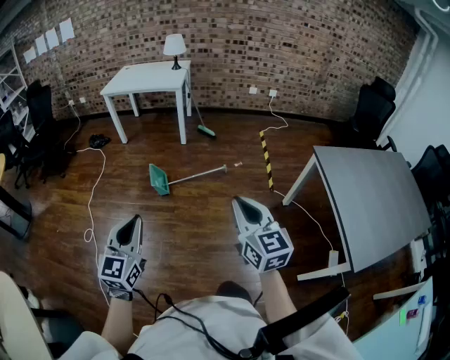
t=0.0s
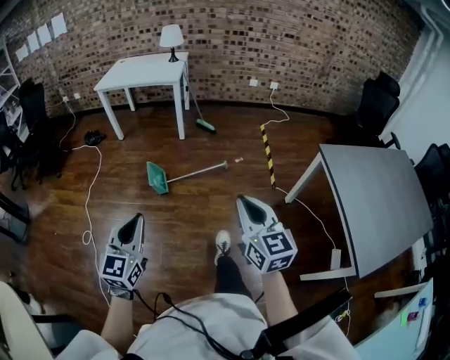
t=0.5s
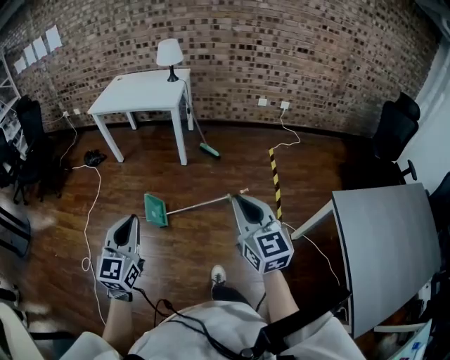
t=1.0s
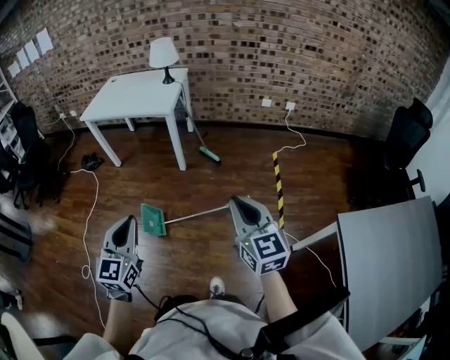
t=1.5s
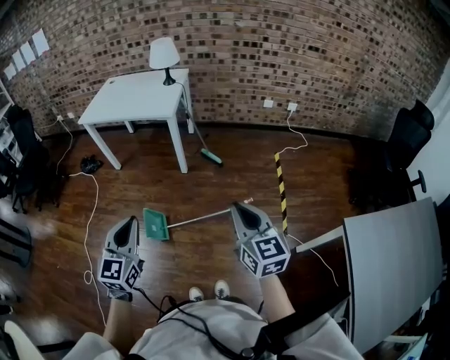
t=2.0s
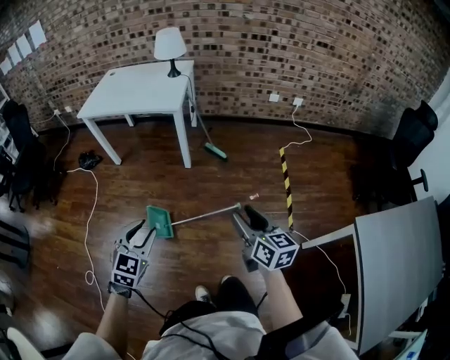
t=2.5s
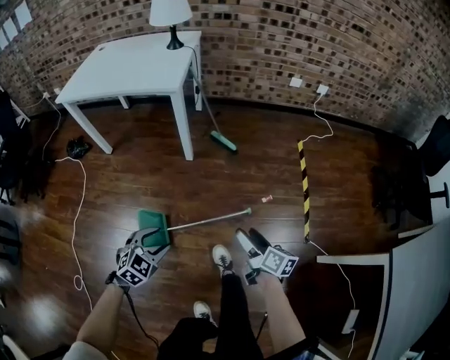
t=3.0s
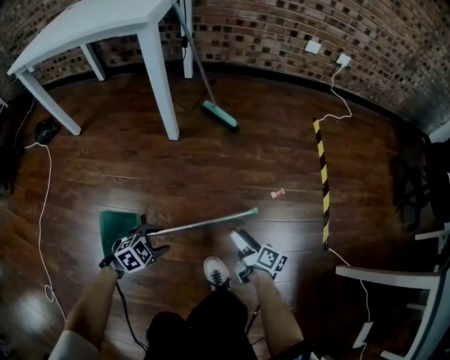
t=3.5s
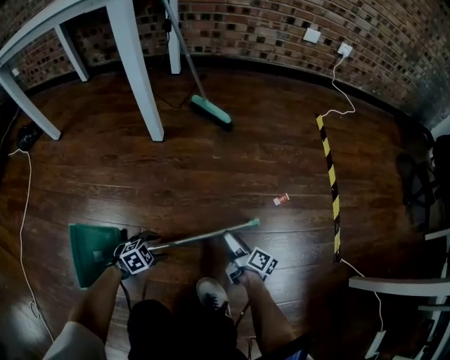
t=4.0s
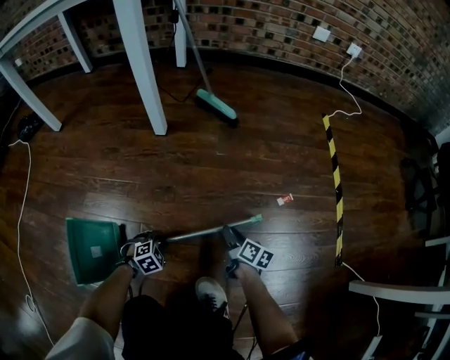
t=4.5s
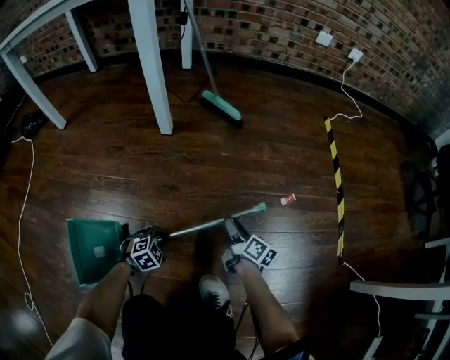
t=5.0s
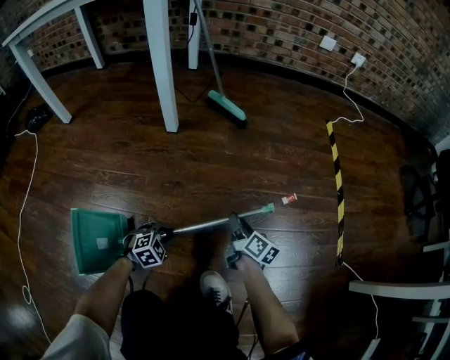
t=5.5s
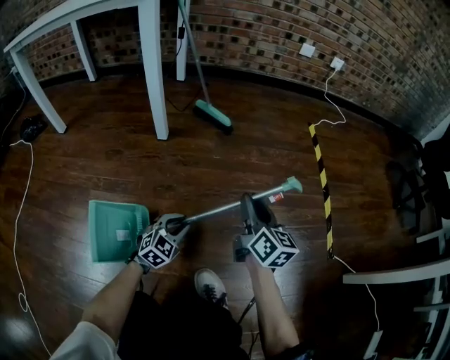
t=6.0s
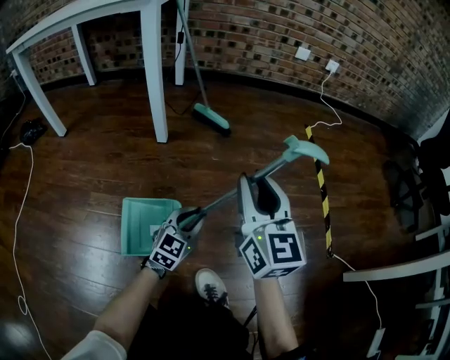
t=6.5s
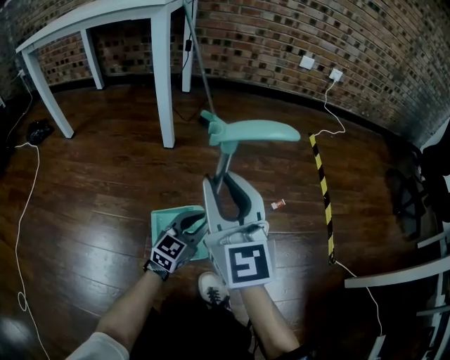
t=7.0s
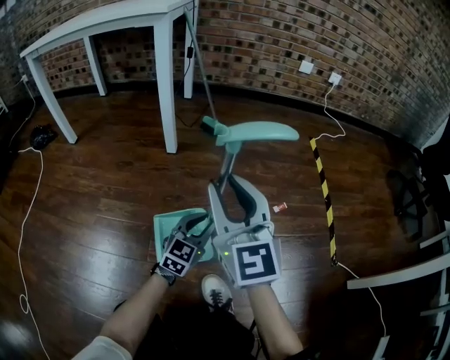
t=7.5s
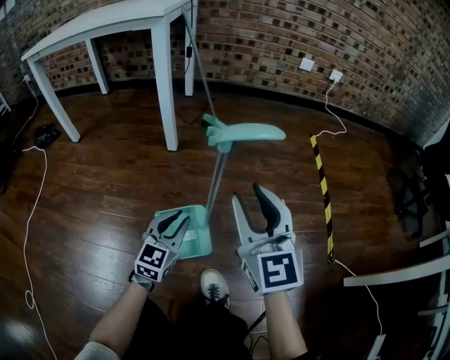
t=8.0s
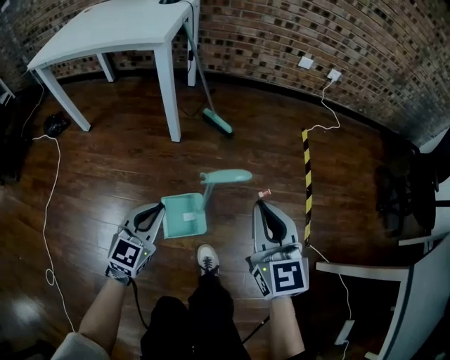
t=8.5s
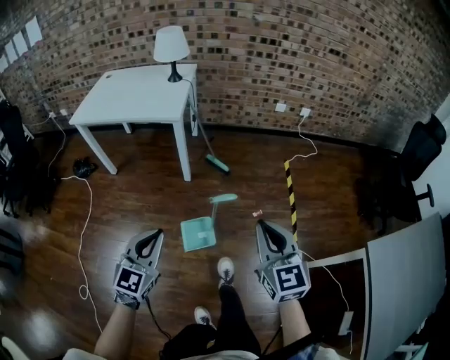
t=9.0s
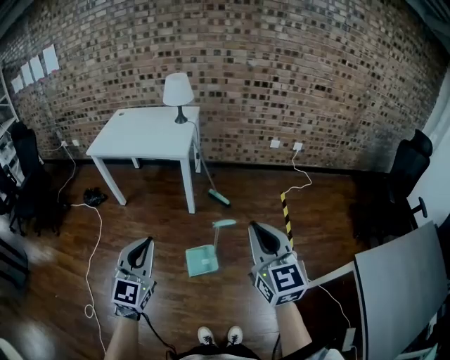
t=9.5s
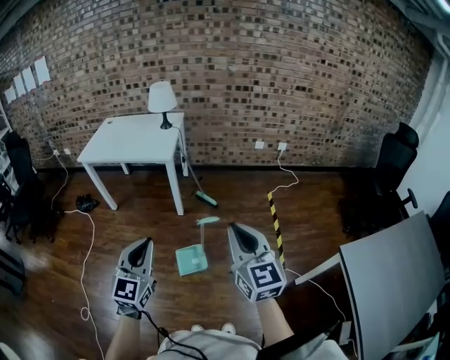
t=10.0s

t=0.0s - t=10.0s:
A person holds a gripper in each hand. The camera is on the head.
t=0.0s - t=2.0s: The two grippers travel together, forward, roughly 50 cm.
t=2.0s - t=4.0s: The two grippers go about 1 m downward. The left gripper tilts its fingers roughly 60 degrees downward, and opens its fingers. Meanwhile the right gripper twists some 70 degrees clockwise, seen from behind, and opens its fingers.
t=4.0s - t=6.0s: The left gripper moves upward, forward and to the right, about 15 cm, swivels approximately 30 degrees, and closes. Meanwhile the right gripper moves upward, some 25 cm, changes its angle by approximately 40 degrees, and closes up.
t=6.0s - t=8.0s: The right gripper shifts about 20 cm upward and backward, and rolls counterclockwise, seen from behind, by about 40 degrees. Meanwhile the left gripper moves upward, approximately 15 cm, and changes its angle by approximately 30 degrees.
t=8.0s - t=10.0s: The two grippers go some 70 cm upward.

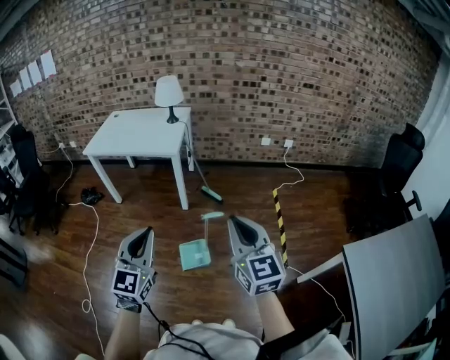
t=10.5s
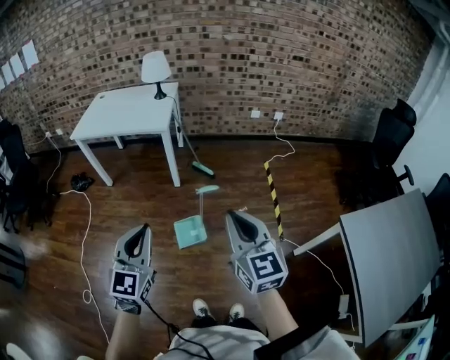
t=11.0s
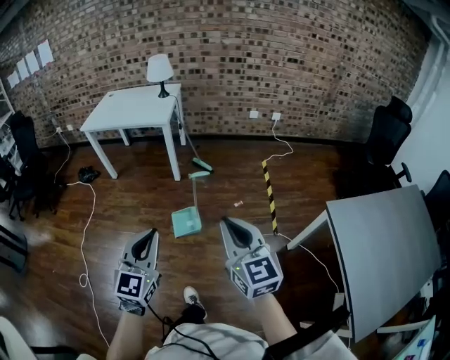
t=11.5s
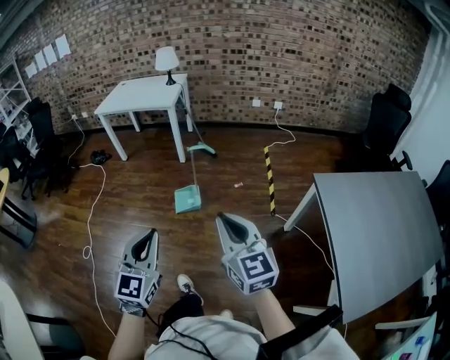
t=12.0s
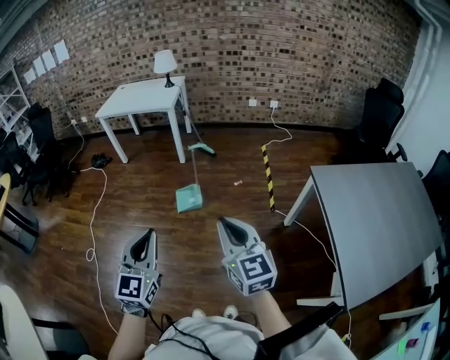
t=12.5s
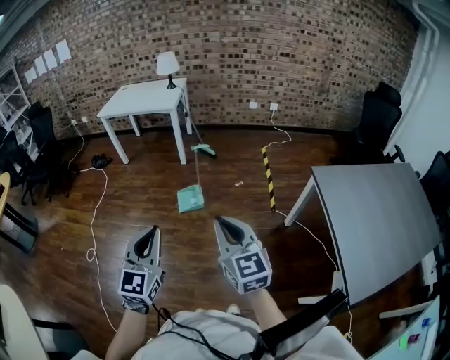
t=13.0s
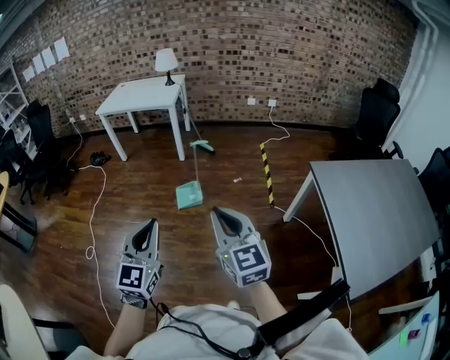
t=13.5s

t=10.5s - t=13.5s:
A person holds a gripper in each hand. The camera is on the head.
t=10.5s - t=12.0s: The two grippers go some 40 cm backward.
t=12.0s - t=13.5s: The left gripper changes place by about 5 cm. The right gripper goes about 10 cm to the left and backward.

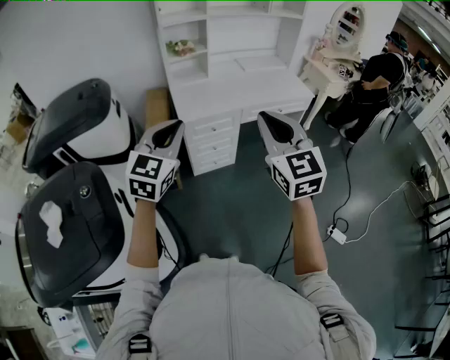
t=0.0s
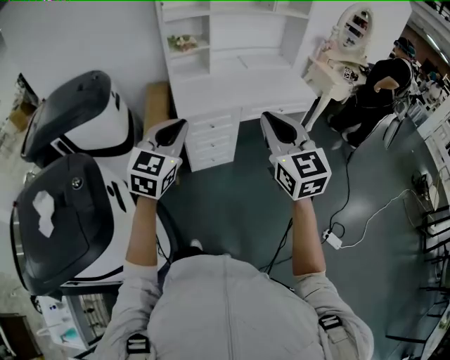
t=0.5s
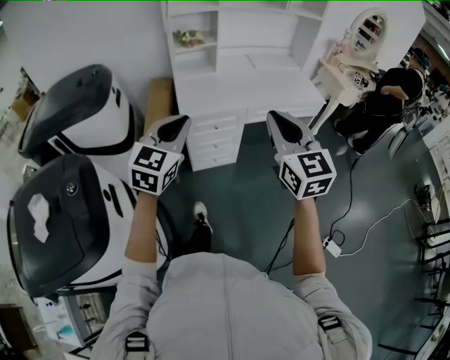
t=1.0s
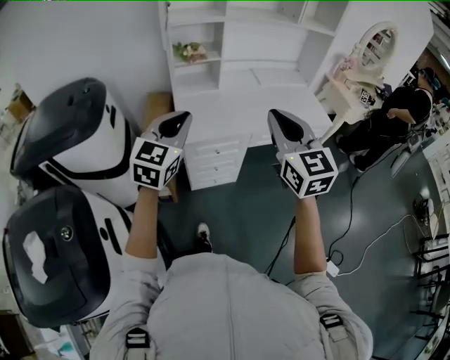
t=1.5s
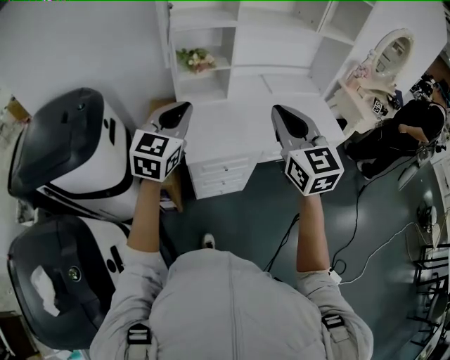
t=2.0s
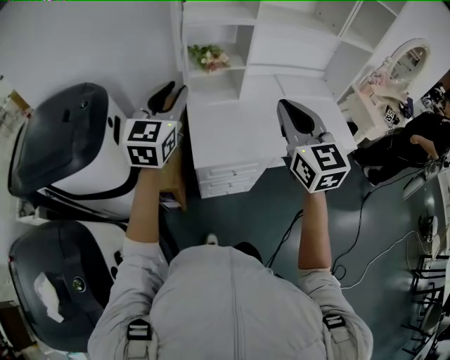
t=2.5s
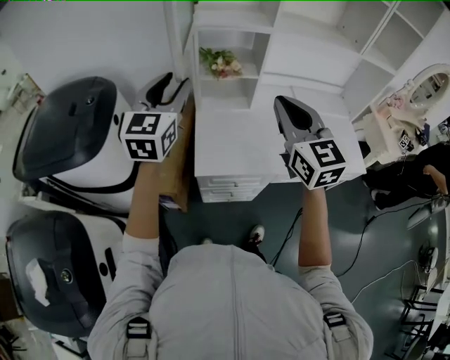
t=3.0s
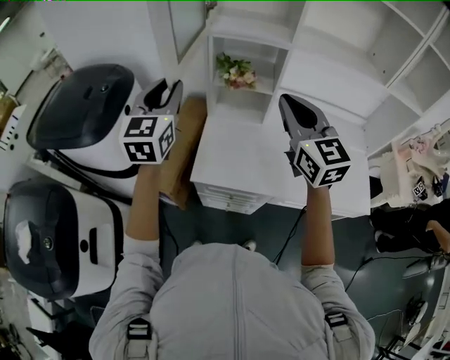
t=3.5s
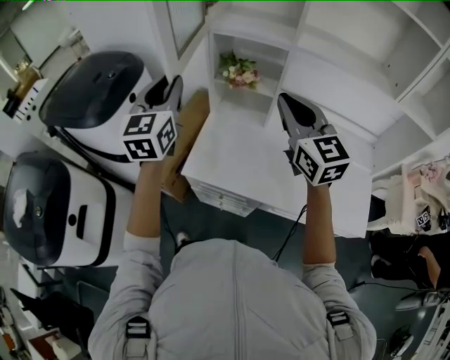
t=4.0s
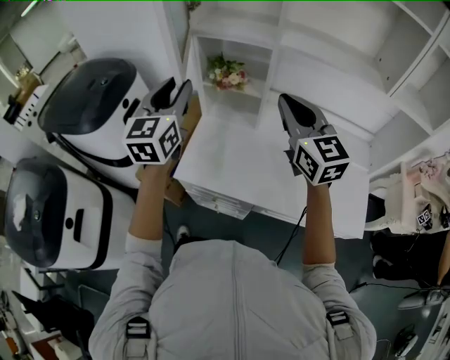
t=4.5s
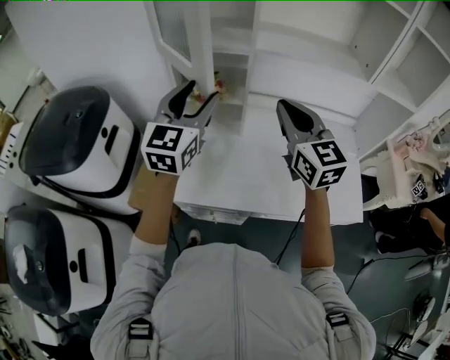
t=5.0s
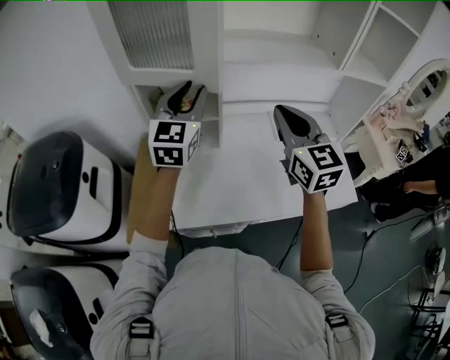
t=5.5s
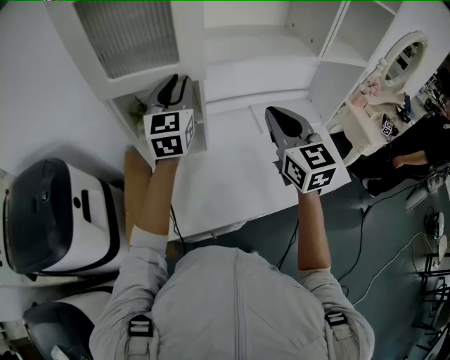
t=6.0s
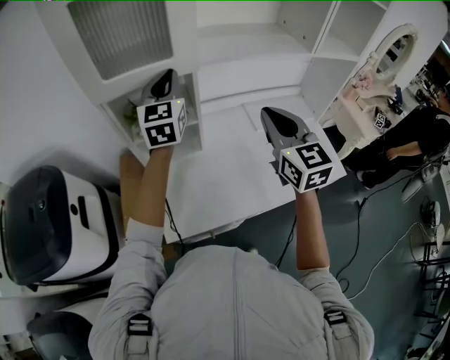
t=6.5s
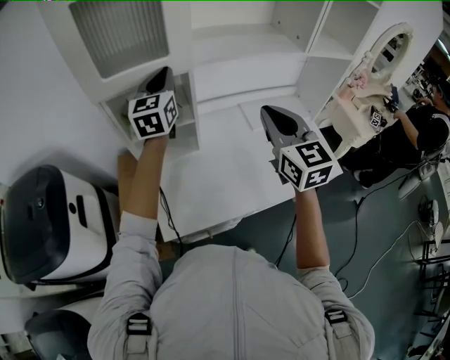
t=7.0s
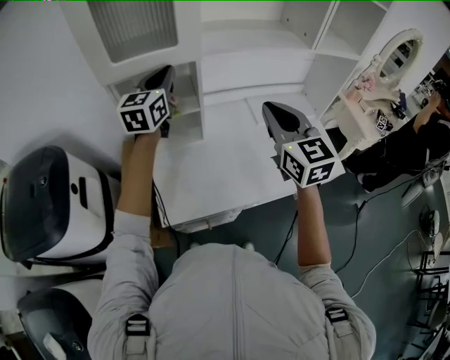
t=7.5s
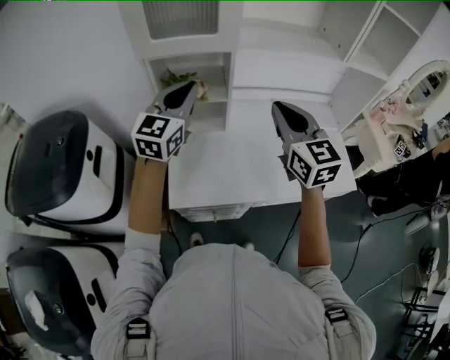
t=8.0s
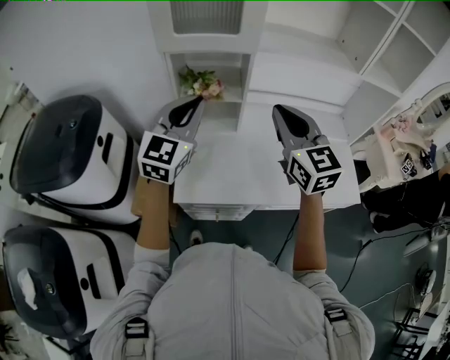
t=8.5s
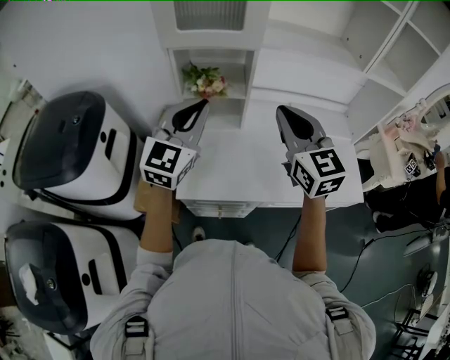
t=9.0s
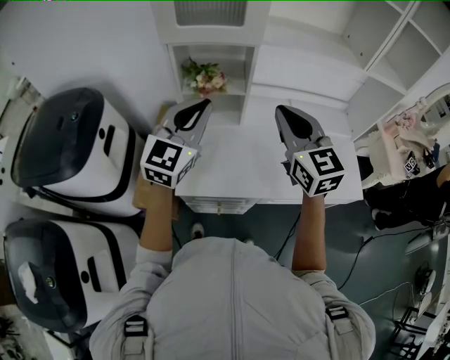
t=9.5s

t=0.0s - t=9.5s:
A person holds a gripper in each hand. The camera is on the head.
t=0.0s - t=2.0s: The two grippers go about 35 cm forward.
t=2.0s - t=4.0s: The left gripper changes place by some 15 cm, turns by about 40 degrees, and opens, then closes once more; the right gripper ends up approximately 25 cm from where it was, and rotates approximately 30 degrees.
t=4.0s - t=5.5s: The right gripper changes place by some 10 cm, and changes its angle by roughly 30 degrees; the left gripper ends up approximately 25 cm from where it was, changes its angle by approximately 30 degrees, and opens and closes again.
t=5.5s - t=7.5s: The left gripper goes some 5 cm forward, and closes.
t=7.5s - t=9.5s: The right gripper heads to the left, covering about 5 cm. The left gripper moves backward, some 20 cm.

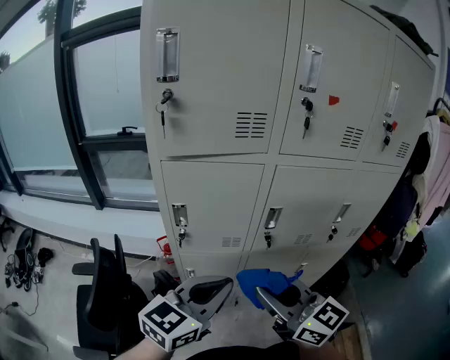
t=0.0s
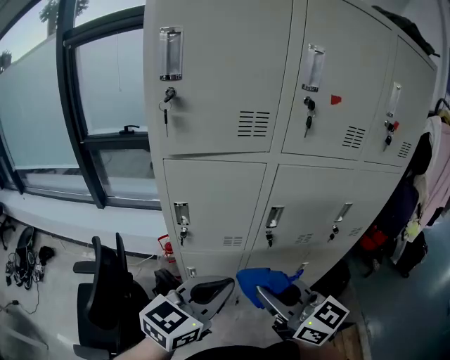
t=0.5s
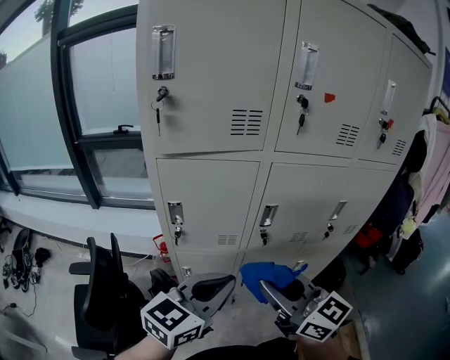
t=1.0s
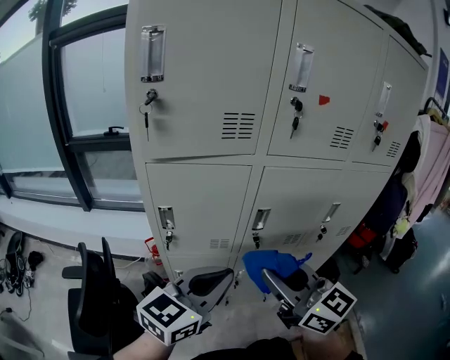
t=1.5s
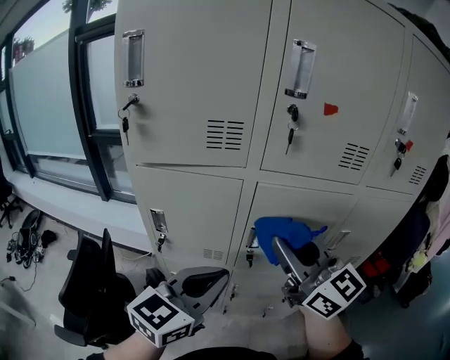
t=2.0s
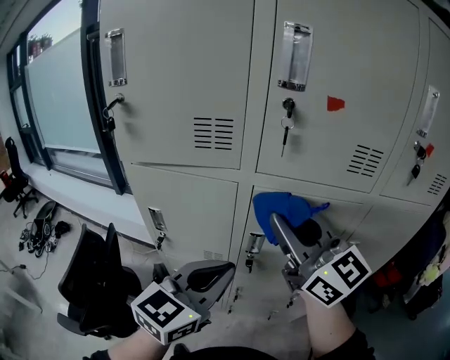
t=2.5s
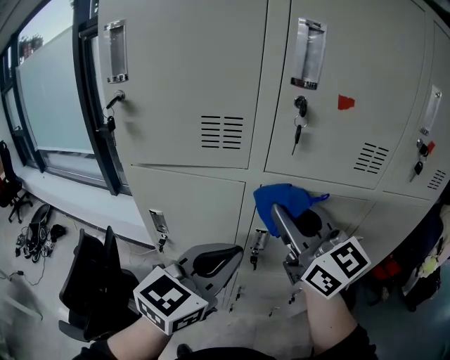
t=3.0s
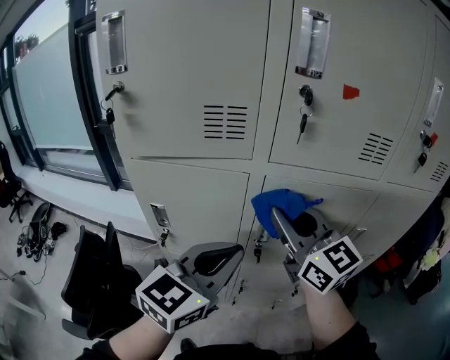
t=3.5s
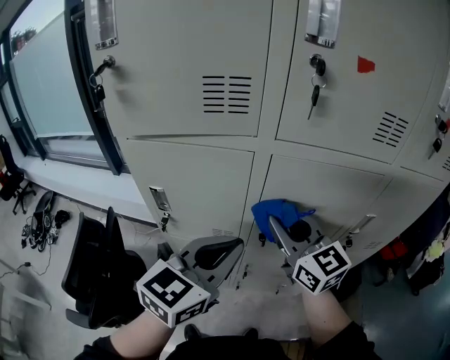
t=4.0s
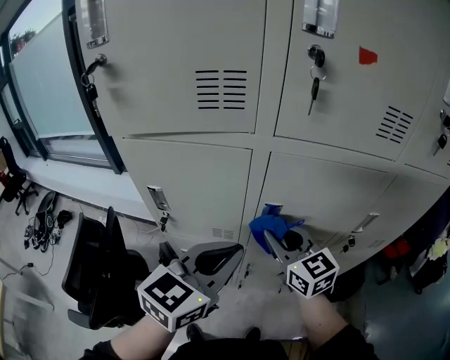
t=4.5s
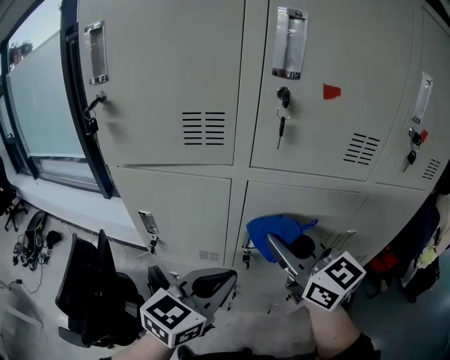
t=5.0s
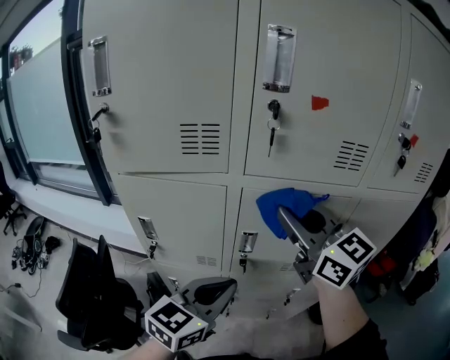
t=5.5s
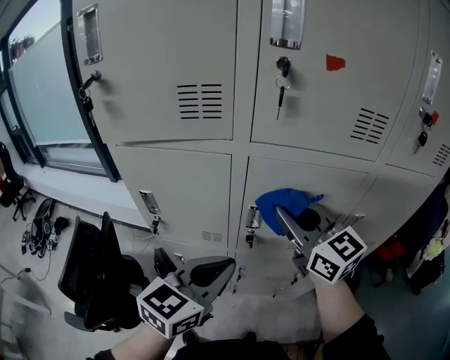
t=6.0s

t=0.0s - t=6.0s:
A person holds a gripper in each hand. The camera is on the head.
t=0.0s - t=2.0s: The right gripper shifts about 20 cm forward, upward and to the right. Meanwhile the left gripper shifts roughly 10 cm to the right and forward.
t=2.0s - t=4.0s: The right gripper travels downward and forward by about 15 cm. The left gripper travels forward by roughly 5 cm.
t=4.0s - t=6.0s: The right gripper goes up and down, some 20 cm each way, reversing 2 times.
